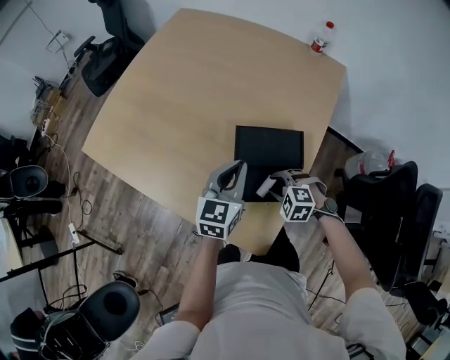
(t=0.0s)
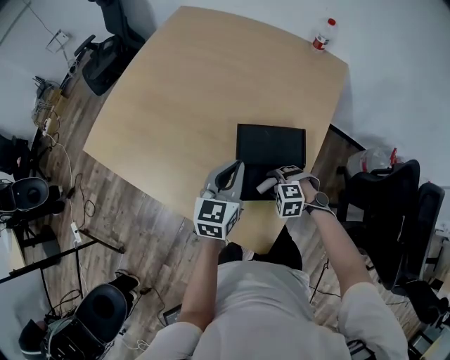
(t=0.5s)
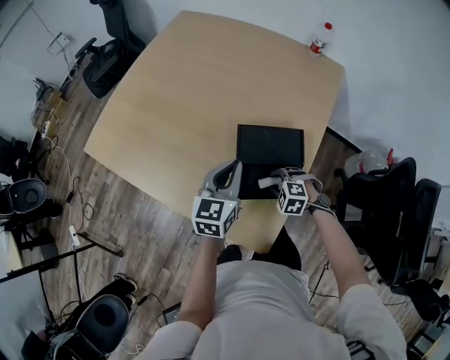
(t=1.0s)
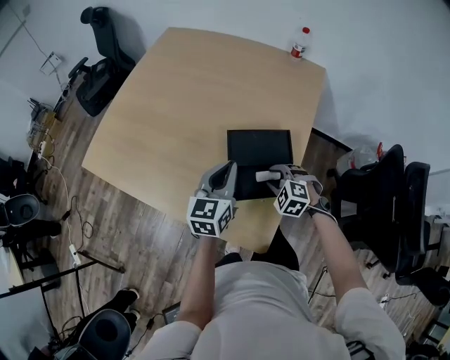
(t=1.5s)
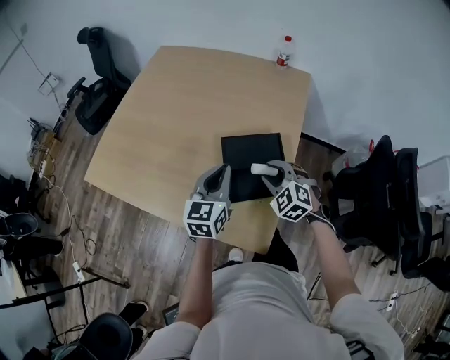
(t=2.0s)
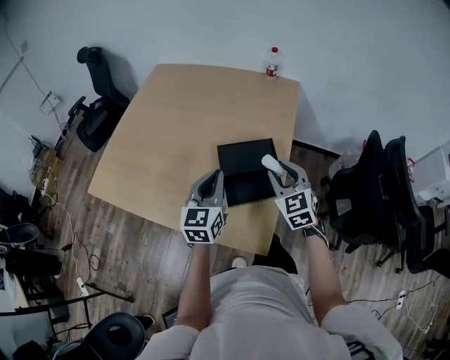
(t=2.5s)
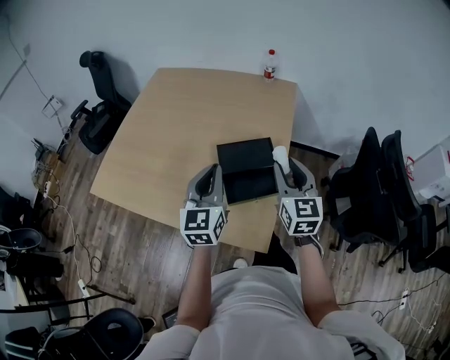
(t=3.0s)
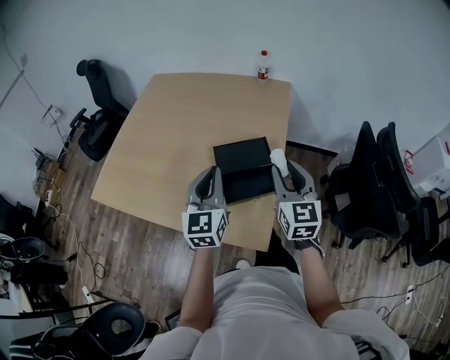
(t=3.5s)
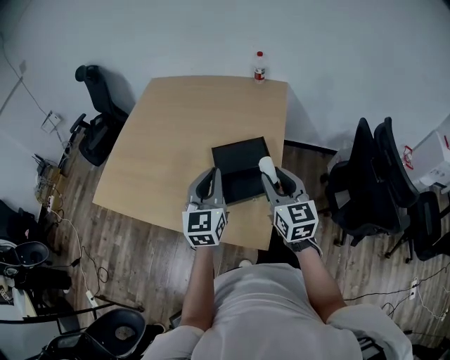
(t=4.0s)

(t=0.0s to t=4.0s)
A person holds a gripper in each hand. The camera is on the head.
t=0.0s - t=2.0s: The left gripper moves upward, about 5 cm; the right gripper travels upward by roughly 15 cm, and swivels approximately 30 degrees.
t=2.0s - t=4.0s: The left gripper goes about 10 cm upward and backward; the right gripper shifts about 15 cm upward and backward, and rotates around the line of its fingers by approximately 50 degrees, clockwise from behind.

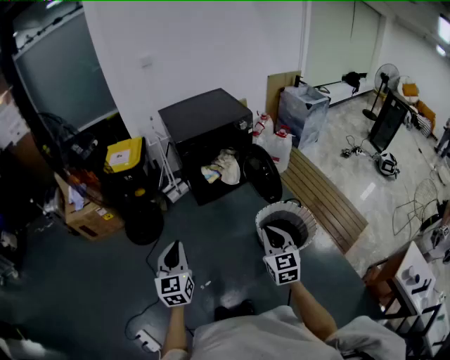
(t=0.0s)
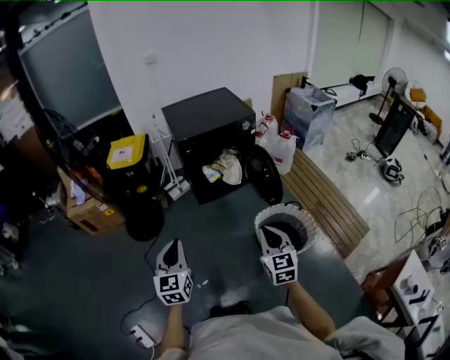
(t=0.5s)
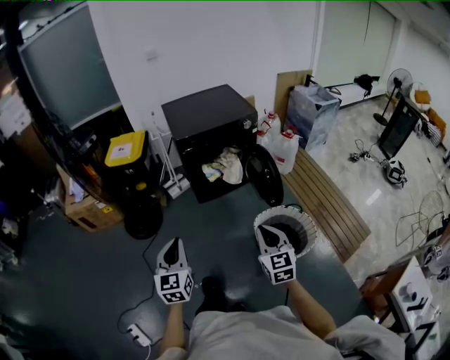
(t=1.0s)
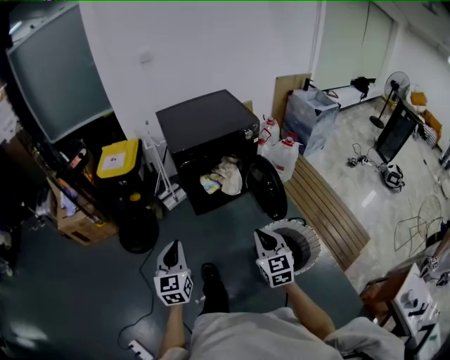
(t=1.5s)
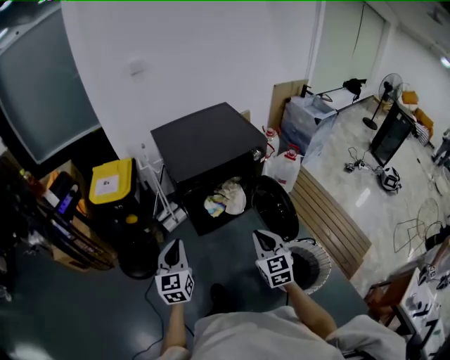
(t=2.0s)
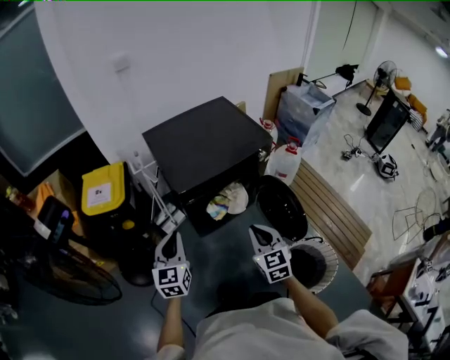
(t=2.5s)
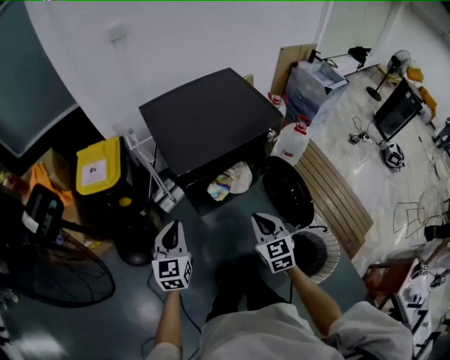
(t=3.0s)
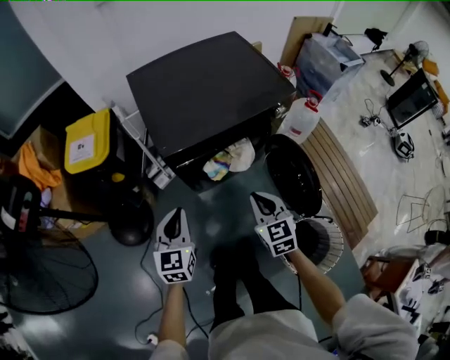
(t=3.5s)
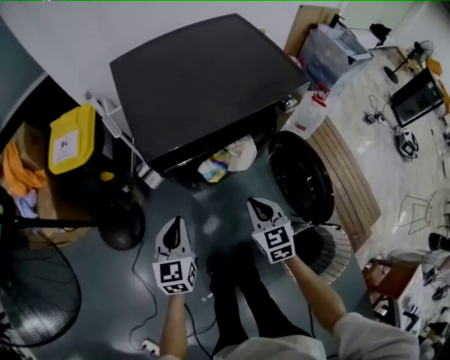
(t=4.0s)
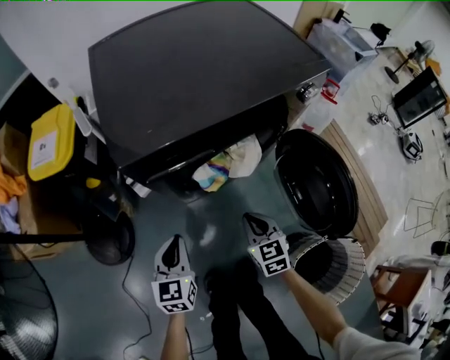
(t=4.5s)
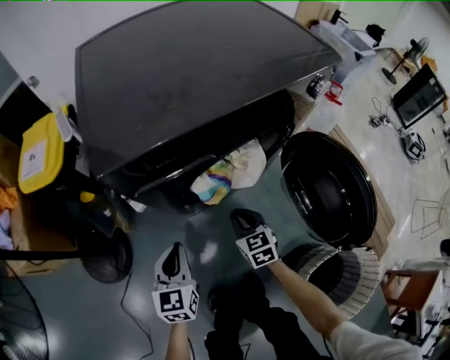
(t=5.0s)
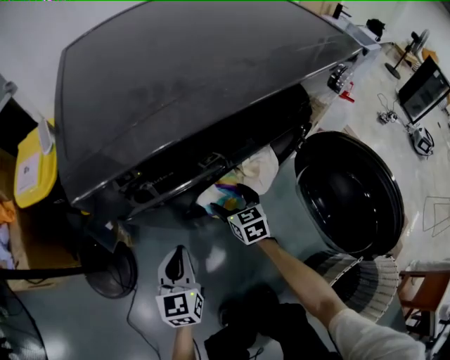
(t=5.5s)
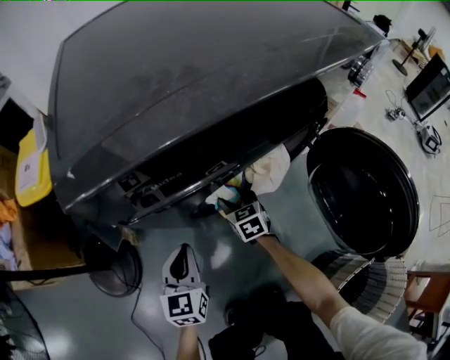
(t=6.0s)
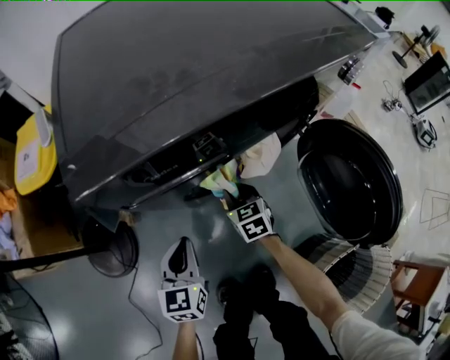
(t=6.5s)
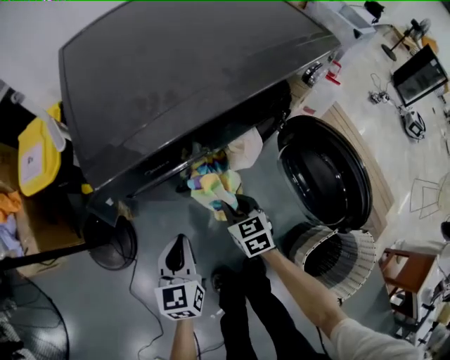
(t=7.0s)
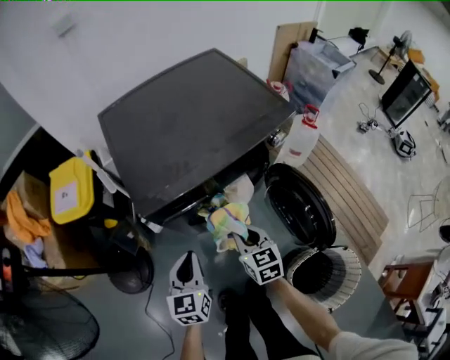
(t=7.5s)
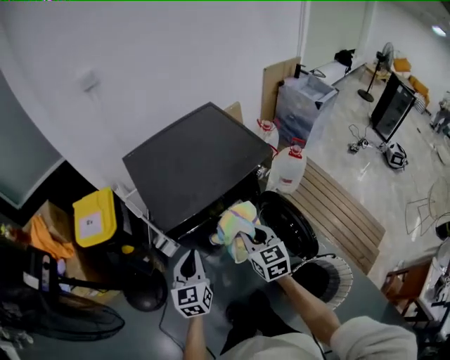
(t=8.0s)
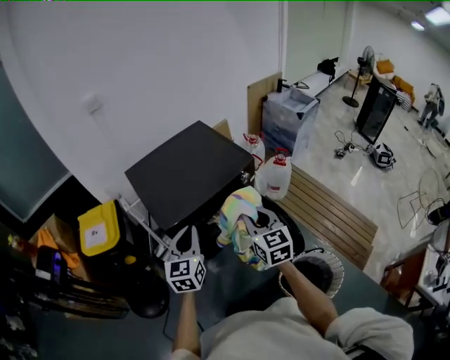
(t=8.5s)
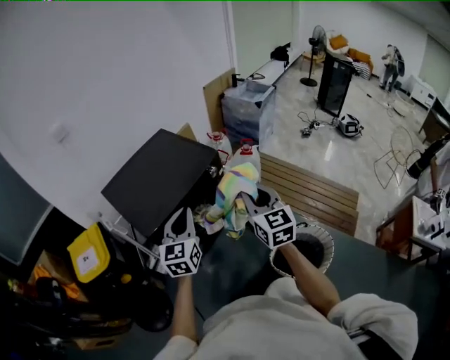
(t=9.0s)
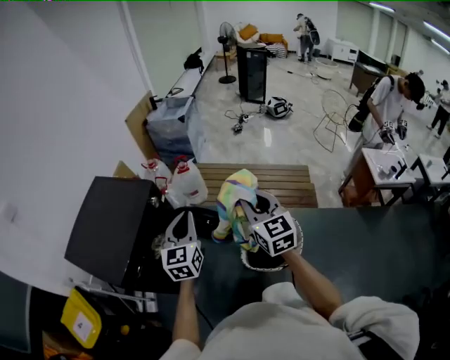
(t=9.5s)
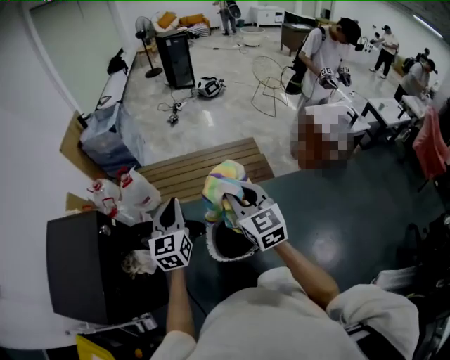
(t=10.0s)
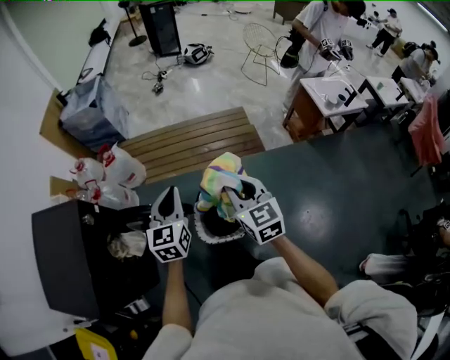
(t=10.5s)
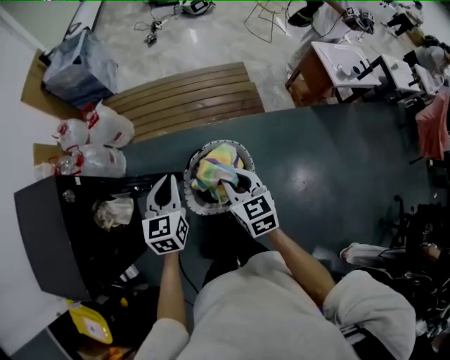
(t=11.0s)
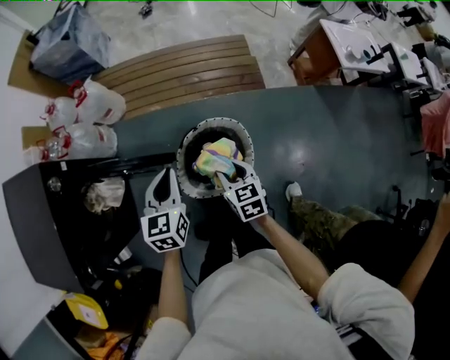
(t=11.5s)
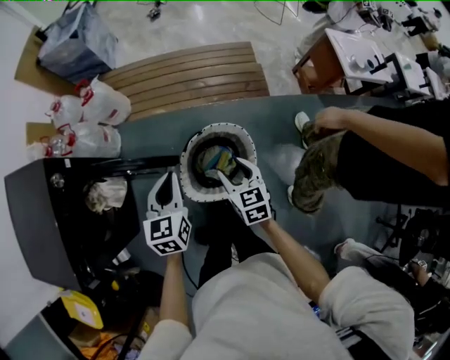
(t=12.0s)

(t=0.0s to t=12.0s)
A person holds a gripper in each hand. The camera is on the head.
t=0.0s - t=2.0s: Both grippers travel together forward, roughly 35 cm.
t=2.0s - t=4.0s: The grippers both shift downward and forward by approximately 35 cm.
t=4.0s - t=6.0s: The left gripper moves downward, about 30 cm, while the right gripper heads downward and forward, covering roughly 40 cm, and opens.
t=6.0s - t=8.0s: Both grippers move upward, some 50 cm. The right gripper rotates roughly 20 degrees, and closes its fingers.
t=8.0s - t=10.0s: The two grippers travel together, approximately 50 cm. The left gripper rotates approximately 60 degrees. The right gripper rotates about 60 degrees.
t=10.0s - t=12.0s: The left gripper goes roughly 20 cm downward, and rotates about 20 degrees; the right gripper travels downward by some 35 cm, rotates about 30 degrees, and opens up.

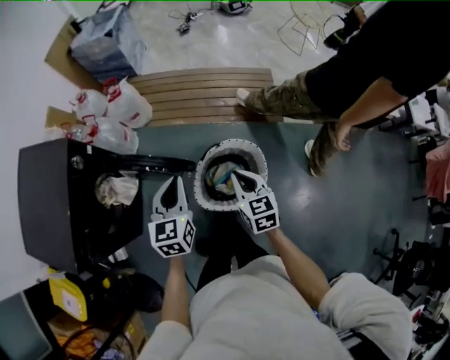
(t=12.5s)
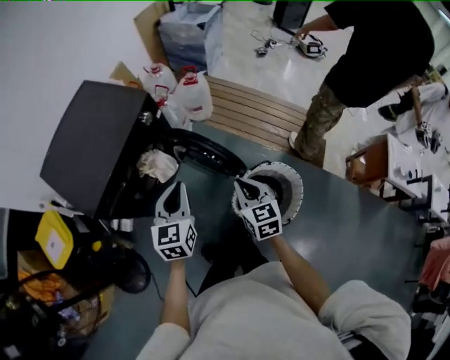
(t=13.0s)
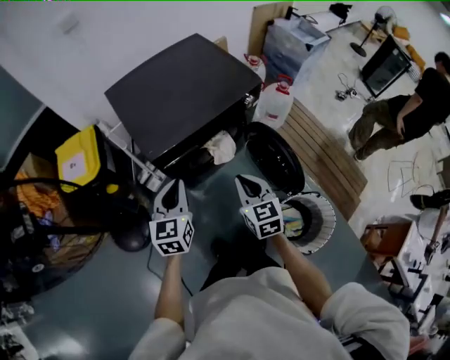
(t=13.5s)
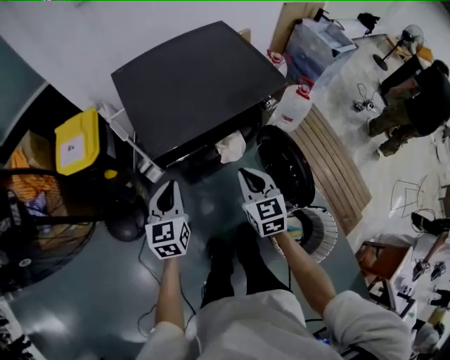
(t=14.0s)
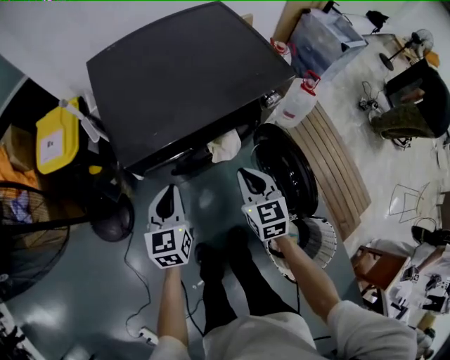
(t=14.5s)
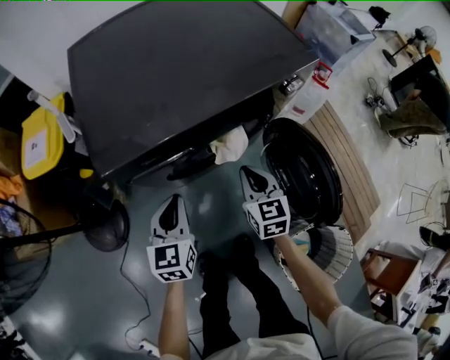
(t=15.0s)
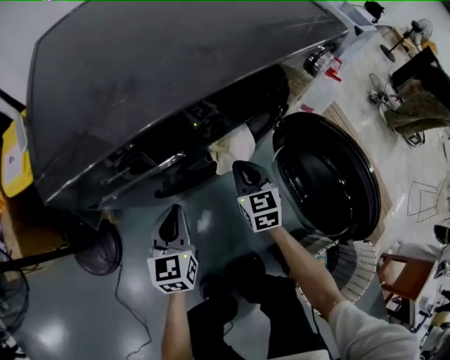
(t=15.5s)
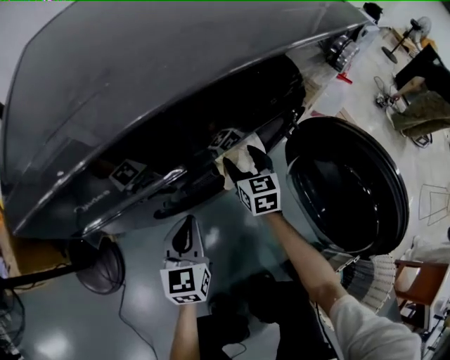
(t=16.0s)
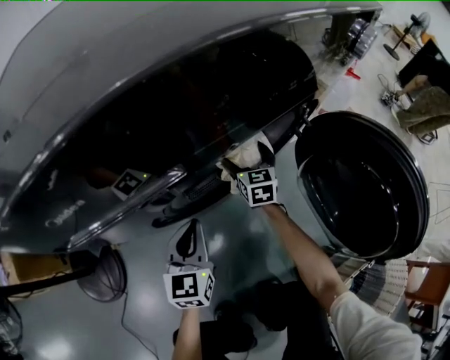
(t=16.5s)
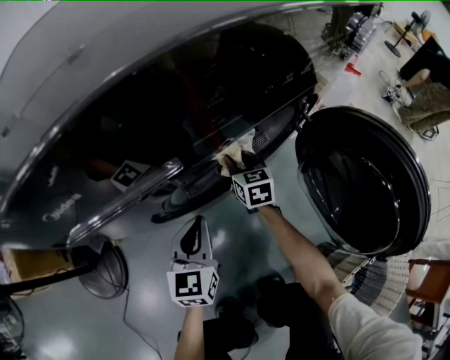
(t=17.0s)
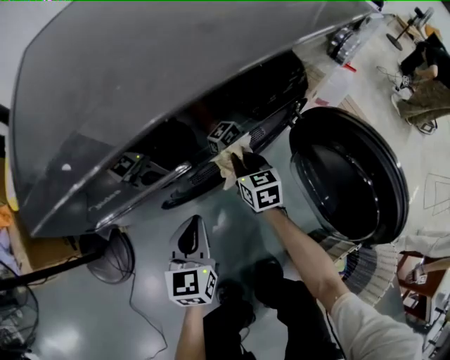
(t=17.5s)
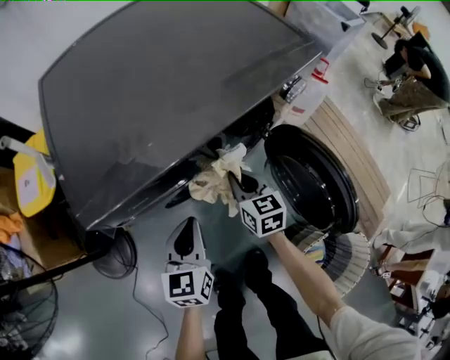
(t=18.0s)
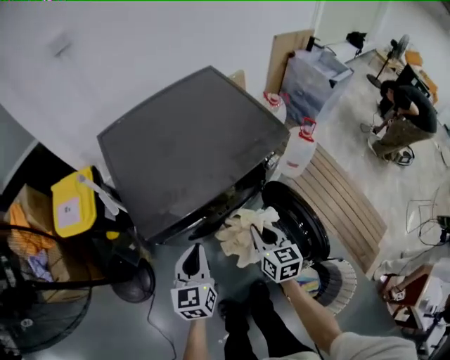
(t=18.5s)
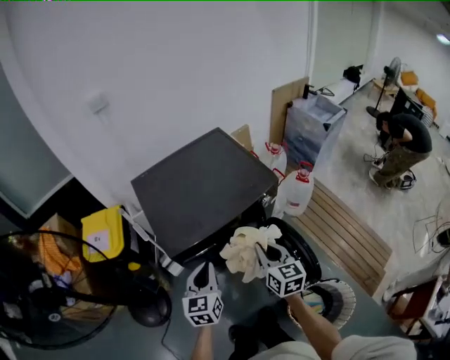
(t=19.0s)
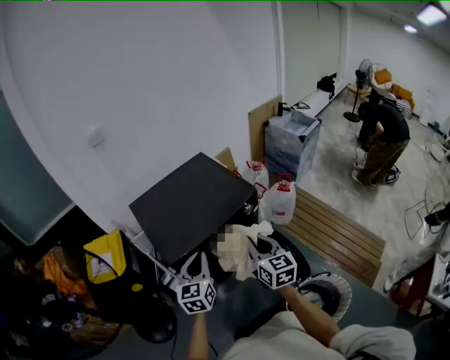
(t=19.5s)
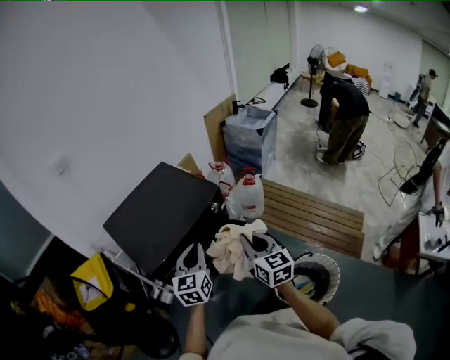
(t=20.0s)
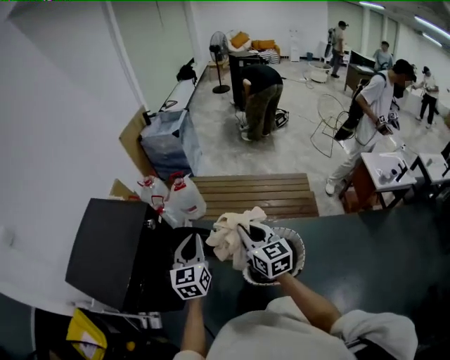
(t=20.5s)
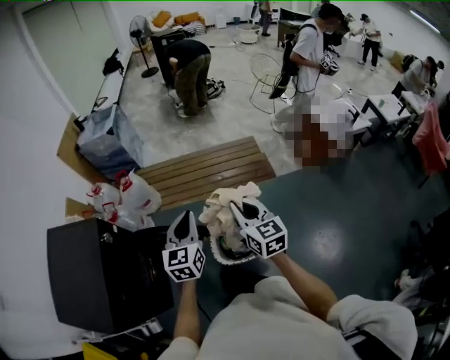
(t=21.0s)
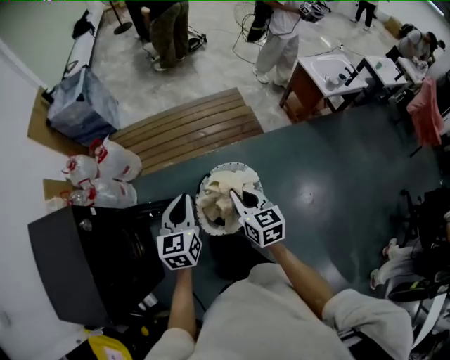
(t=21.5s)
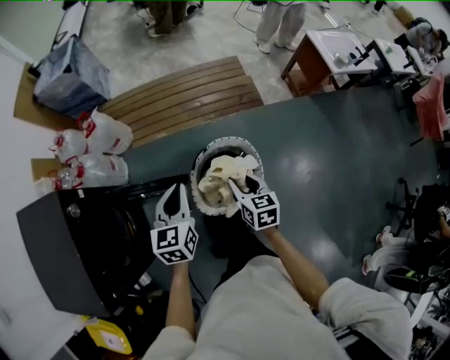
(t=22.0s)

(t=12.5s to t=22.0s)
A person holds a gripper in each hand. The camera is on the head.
t=12.5s - t=14.5s: The pair of grippers is taken approximately 50 cm. The right gripper turns by some 60 degrees; the left gripper swivels about 60 degrees.
t=14.5s - t=16.5s: The right gripper shifts roughly 50 cm downward and forward, and opens up. The left gripper shifts approximately 40 cm downward.
t=16.5s - t=18.0s: The right gripper goes about 30 cm upward and backward, and closes up. The left gripper travels upward by some 25 cm.
t=18.0s - t=20.0s: The right gripper goes roughly 60 cm upward and backward, and turns by roughly 30 degrees. Meanwhile the left gripper goes roughly 50 cm upward, and turns by roughly 20 degrees.
t=20.0s - t=22.0s: The pair of grippers is taken about 40 cm. The right gripper swivels about 60 degrees, while the left gripper turns by about 50 degrees.

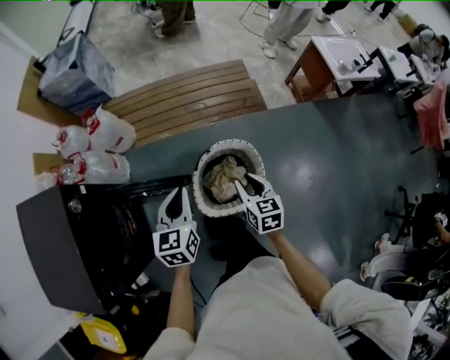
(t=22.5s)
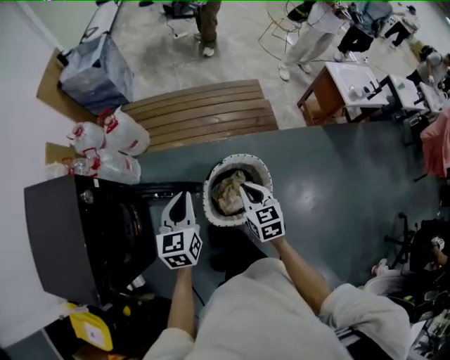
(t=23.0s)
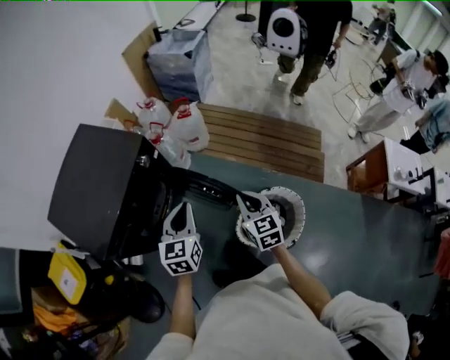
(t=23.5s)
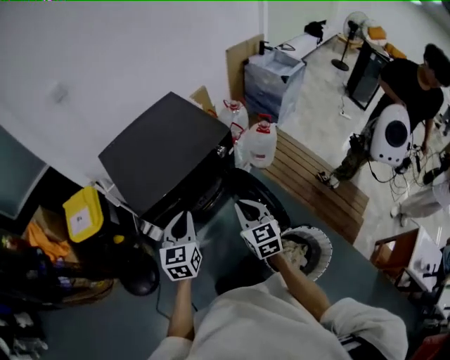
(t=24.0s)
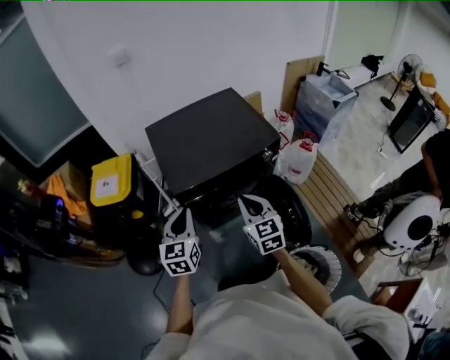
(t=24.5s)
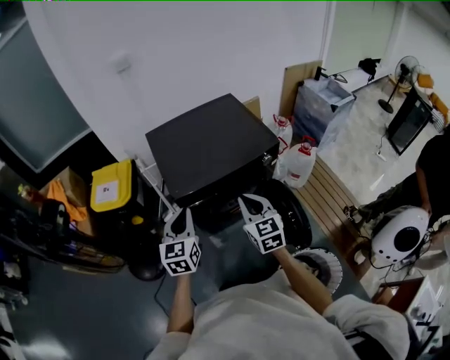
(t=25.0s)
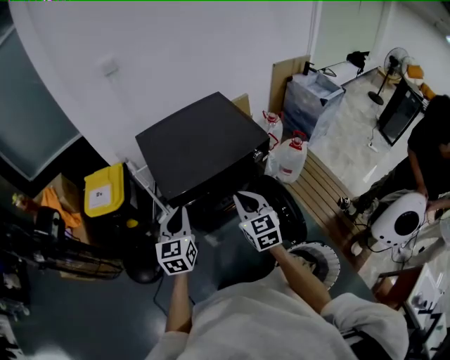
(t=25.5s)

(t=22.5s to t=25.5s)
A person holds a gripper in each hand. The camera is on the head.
t=22.5s - t=24.0s: The pair of grippers is taken some 40 cm. The left gripper turns by about 60 degrees, while the right gripper changes its angle by about 70 degrees.
t=24.0s - t=25.5s: The left gripper is displaced to the left by about 15 cm. Meanwhile the right gripper travels to the left and forward by some 15 cm.
